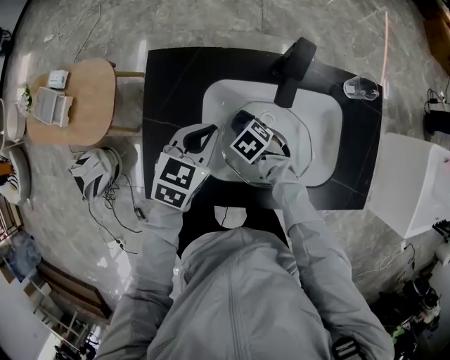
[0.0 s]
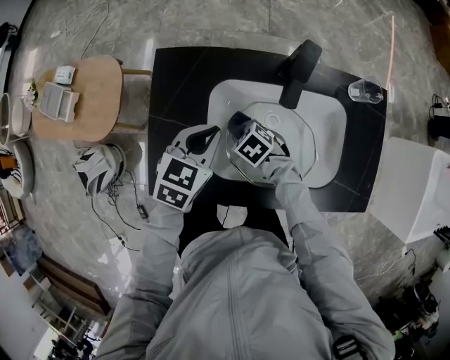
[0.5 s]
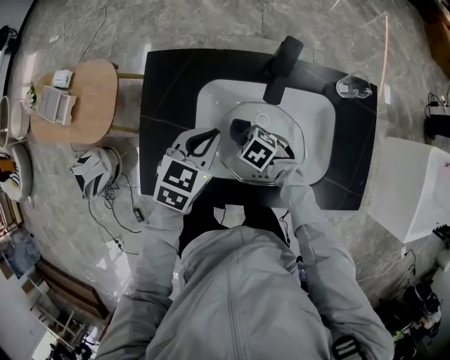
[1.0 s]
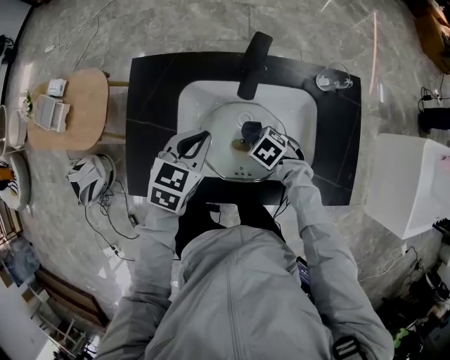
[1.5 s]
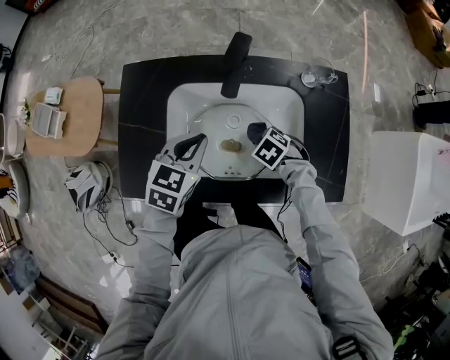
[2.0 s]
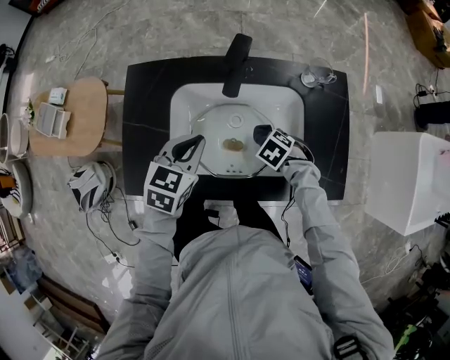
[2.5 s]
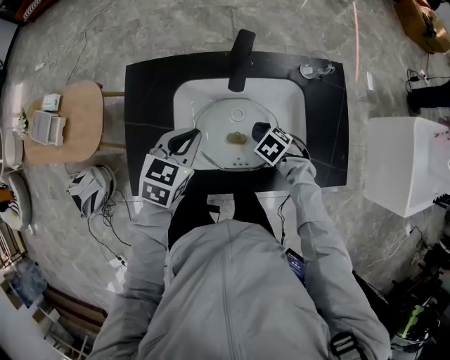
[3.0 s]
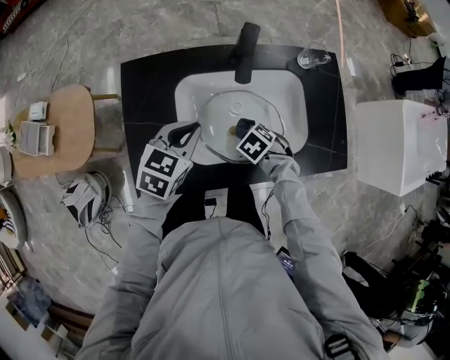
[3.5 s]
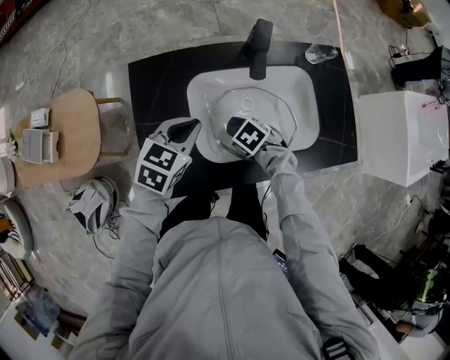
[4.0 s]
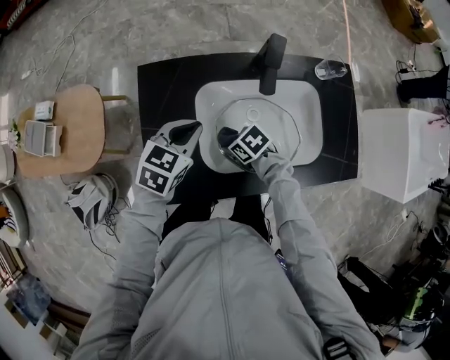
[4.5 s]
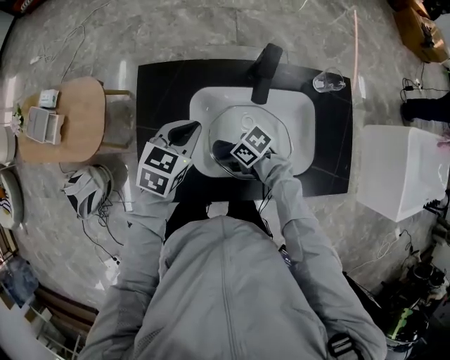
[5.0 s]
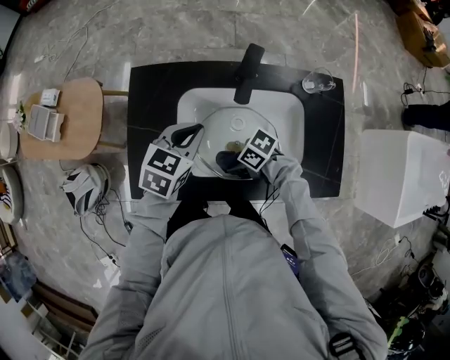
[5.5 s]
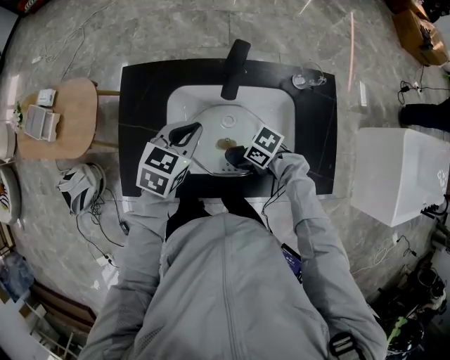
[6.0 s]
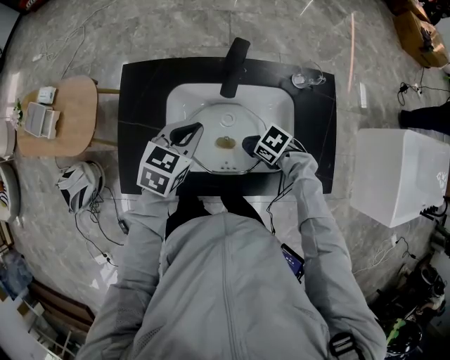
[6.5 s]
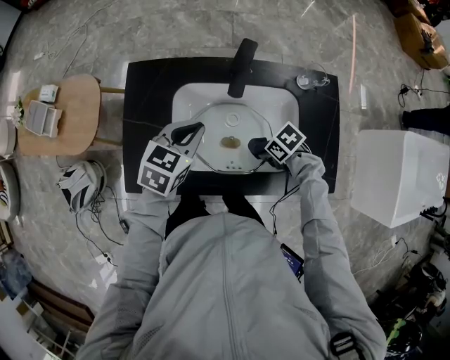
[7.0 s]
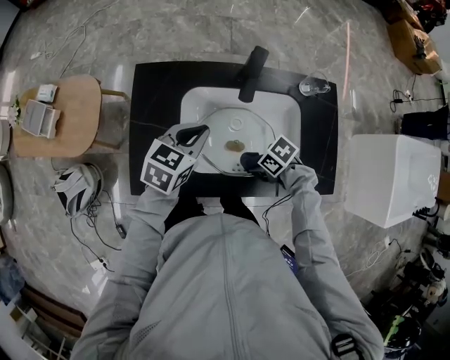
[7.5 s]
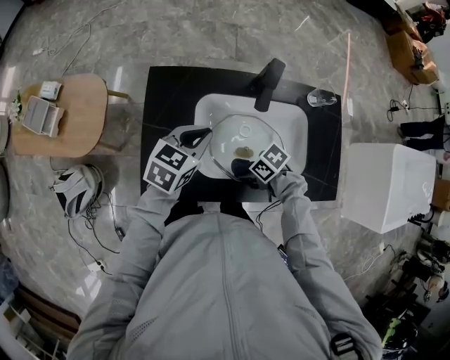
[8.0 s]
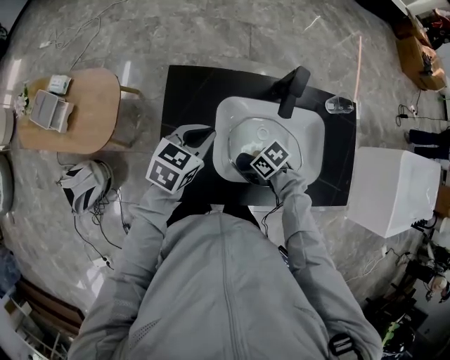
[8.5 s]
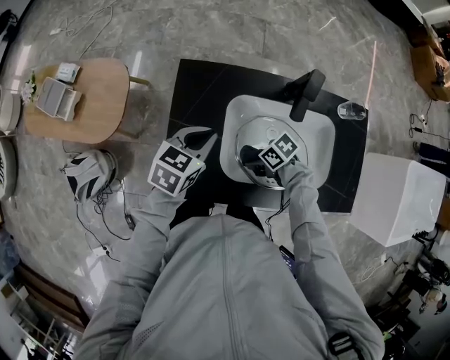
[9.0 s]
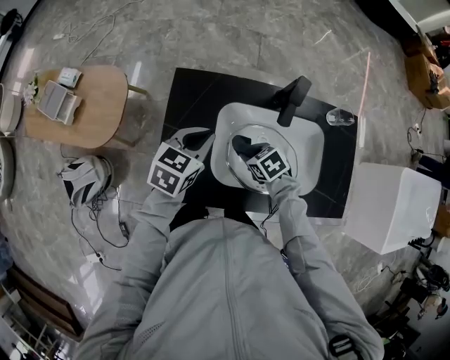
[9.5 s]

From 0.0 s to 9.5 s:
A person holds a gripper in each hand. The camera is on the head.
From 0.0 s to 2.0 s: The left gripper moves about 10 cm. The right gripper changes place by about 20 cm.
From 2.0 s to 4.0 s: The left gripper moves approximately 10 cm. The right gripper shifts by about 15 cm.
From 4.0 s to 5.5 s: The right gripper changes place by some 5 cm, and tilts its fingers roughly 30 degrees upward; the left gripper ends up some 5 cm from where it was.
From 7.5 s to 9.5 s: The right gripper shifts by approximately 20 cm, and swivels approximately 30 degrees. Meanwhile the left gripper shifts by about 10 cm.

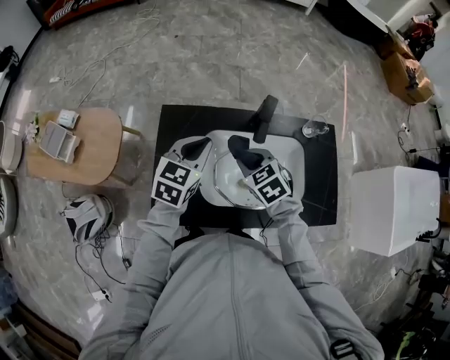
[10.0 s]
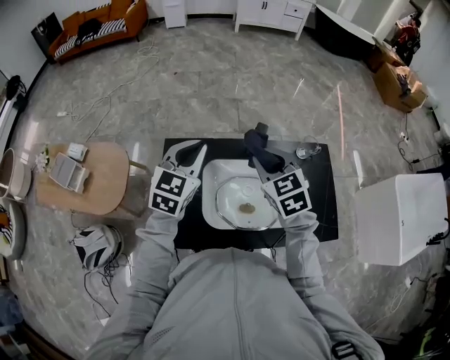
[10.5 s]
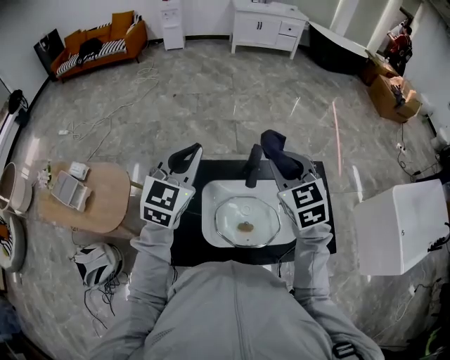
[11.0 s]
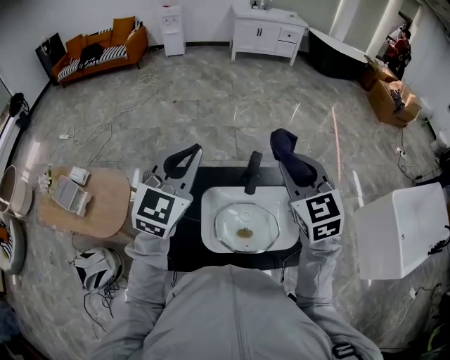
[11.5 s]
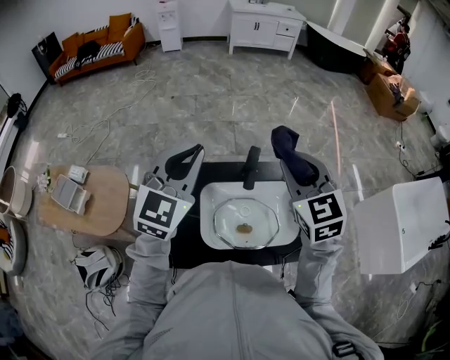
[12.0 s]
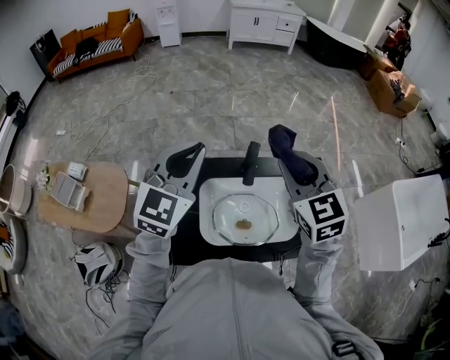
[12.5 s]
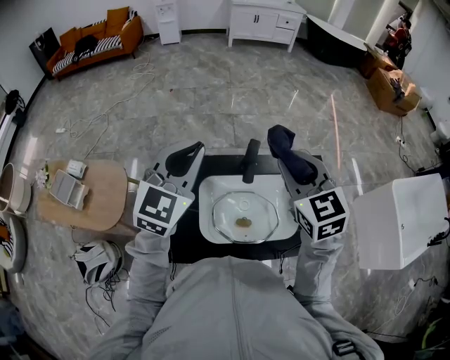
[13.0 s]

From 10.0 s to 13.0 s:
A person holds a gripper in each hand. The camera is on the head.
From 10.0 s to 11.5 s: The two grippers go roughly 25 cm upward. The left gripper rotates approximately 30 degrees. The right gripper points its fingers some 30 degrees further upward.
From 11.5 s to 13.0 s: There are only small adjustments of the grippers.

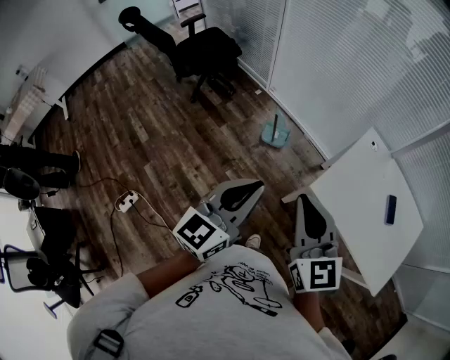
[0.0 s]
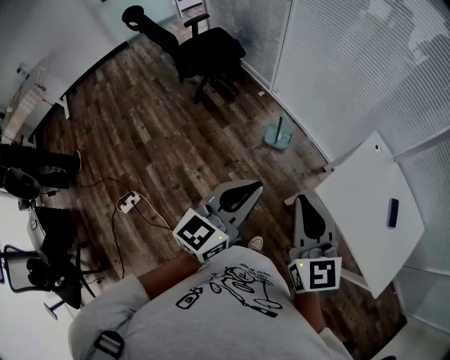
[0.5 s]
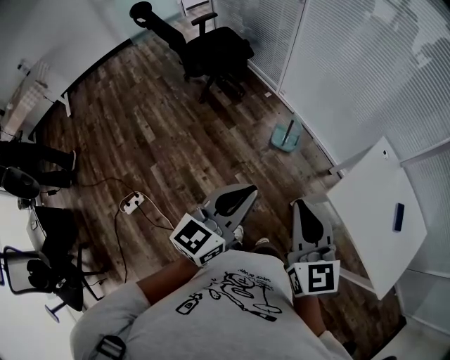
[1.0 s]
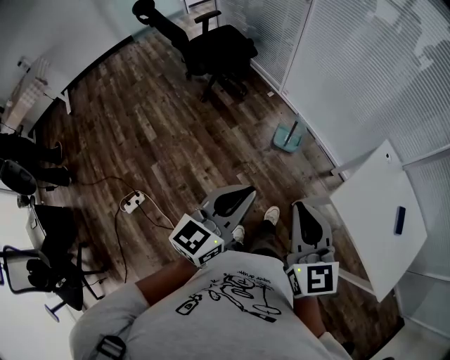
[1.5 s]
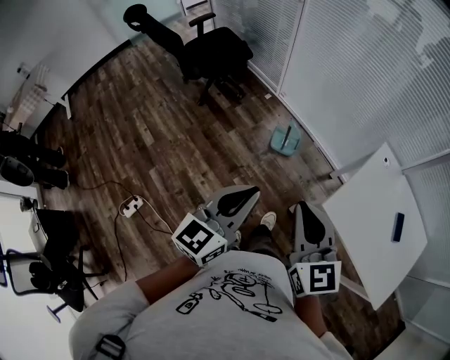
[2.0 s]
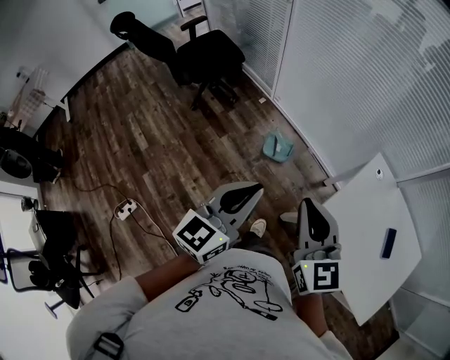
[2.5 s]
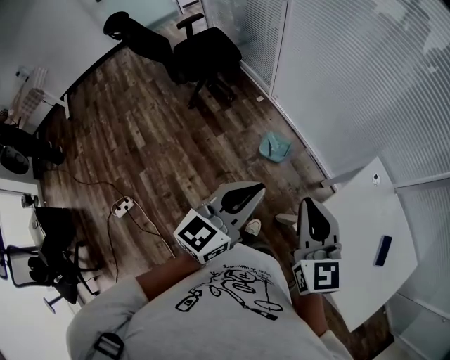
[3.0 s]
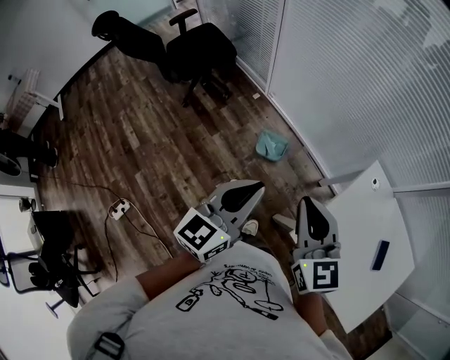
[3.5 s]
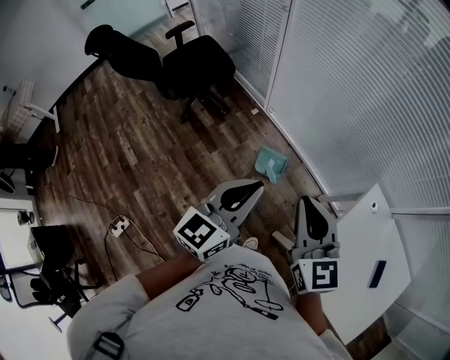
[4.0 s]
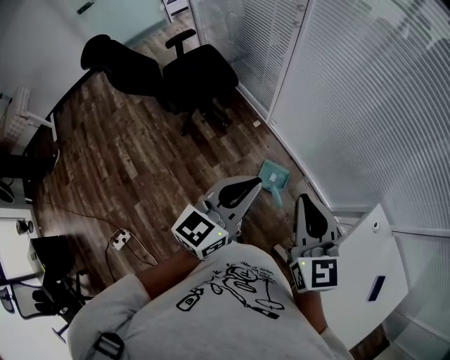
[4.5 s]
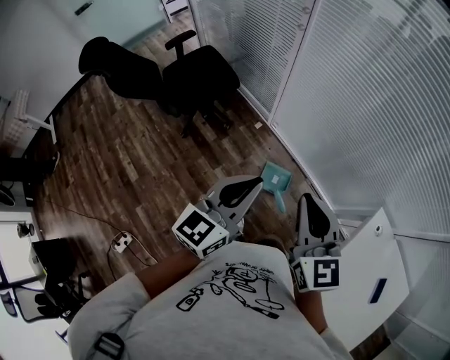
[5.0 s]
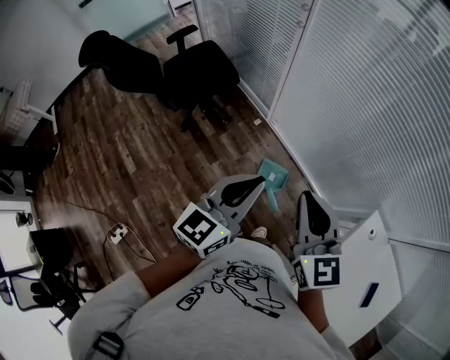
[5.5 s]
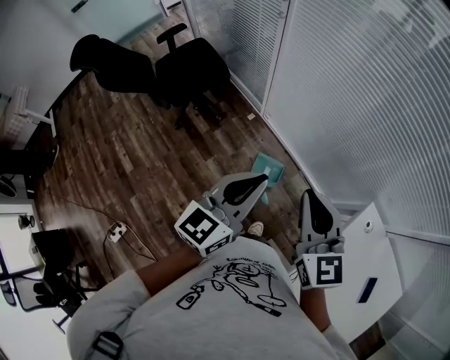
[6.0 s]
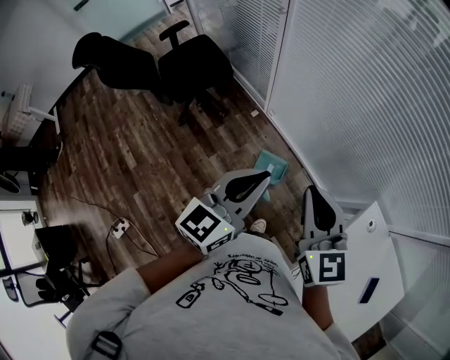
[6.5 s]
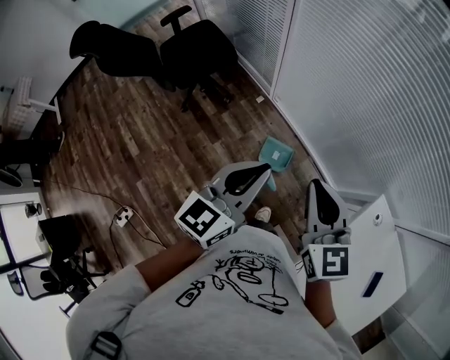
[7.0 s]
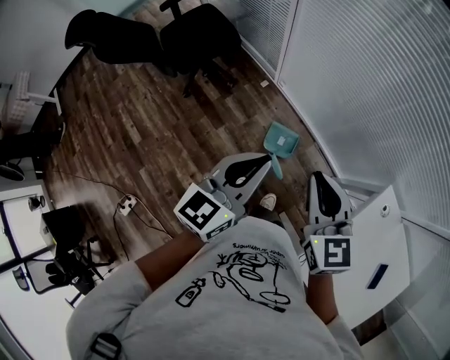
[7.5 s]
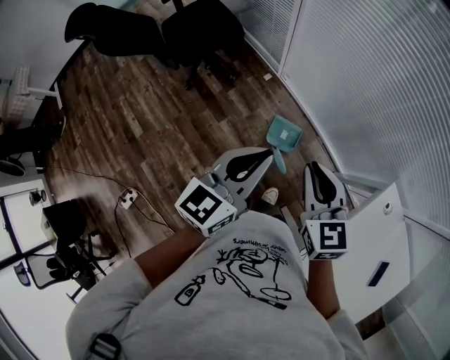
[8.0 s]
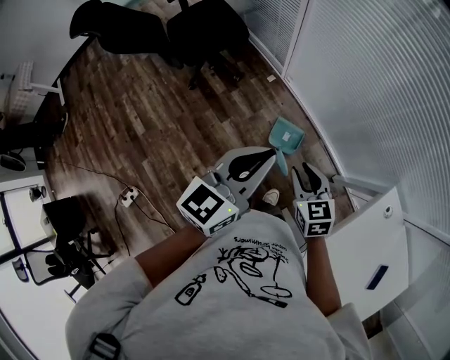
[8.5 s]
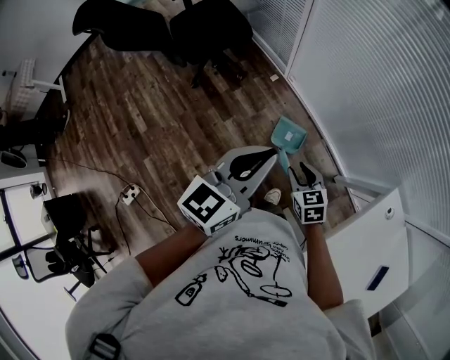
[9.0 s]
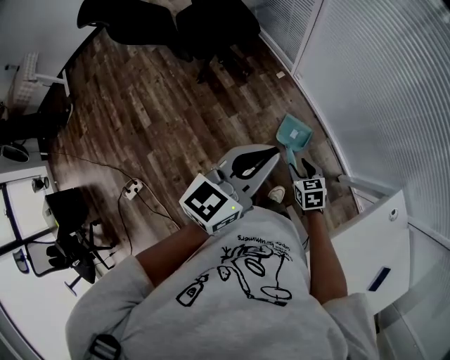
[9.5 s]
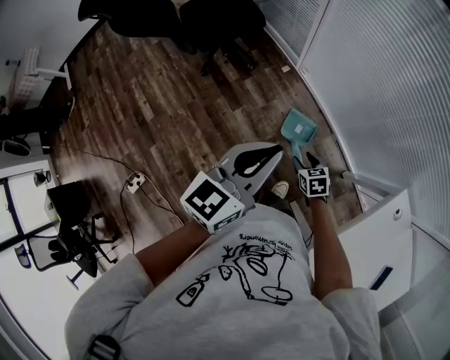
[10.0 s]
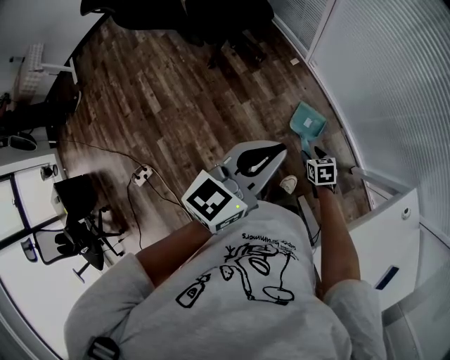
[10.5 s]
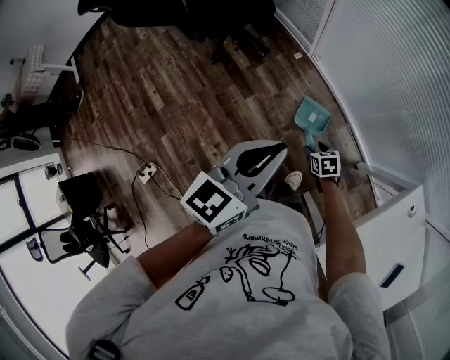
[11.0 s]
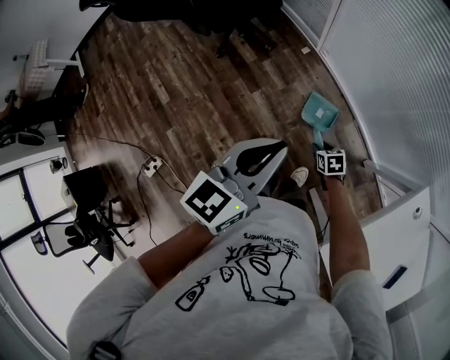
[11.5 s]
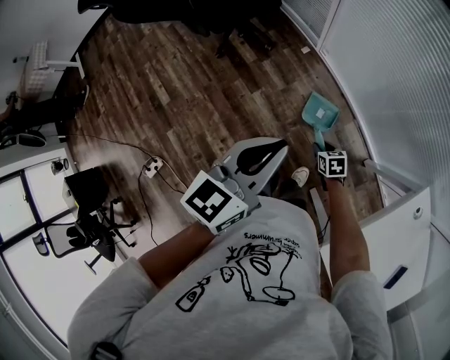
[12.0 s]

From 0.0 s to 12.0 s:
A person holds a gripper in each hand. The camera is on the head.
From 0.0 s to 2.0 s: The two grippers go roughly 10 cm to the left and forward.
From 2.0 s to 4.0 s: Both grippers travel together forward, some 30 cm.
From 4.0 s to 6.0 s: Both grippers move forward, approximately 15 cm.
From 6.0 s to 8.0 s: The right gripper is displaced downward by roughly 10 cm; the left gripper moves downward, some 5 cm.
From 8.0 s to 10.0 s: The right gripper goes about 30 cm downward, changes its angle by approximately 30 degrees, and opens.
From 10.0 s to 12.0 s: The right gripper heads downward, covering some 10 cm.

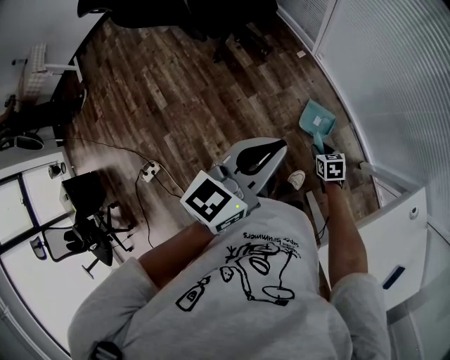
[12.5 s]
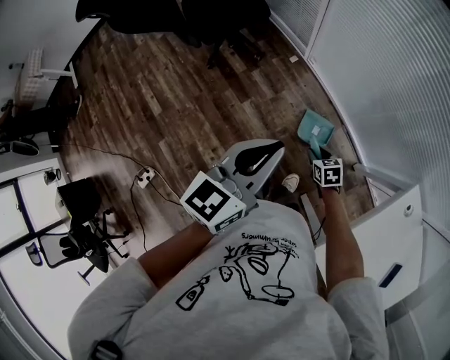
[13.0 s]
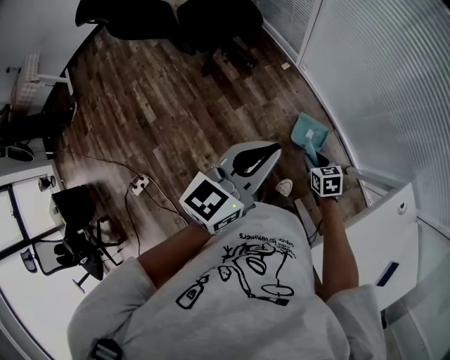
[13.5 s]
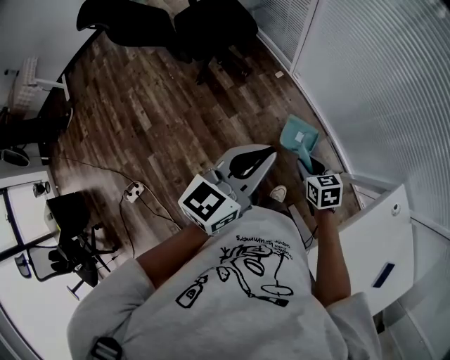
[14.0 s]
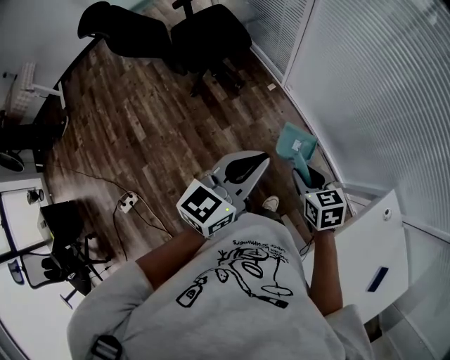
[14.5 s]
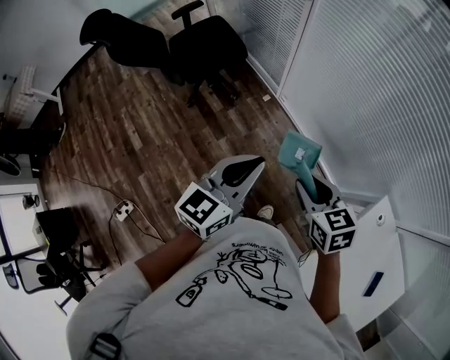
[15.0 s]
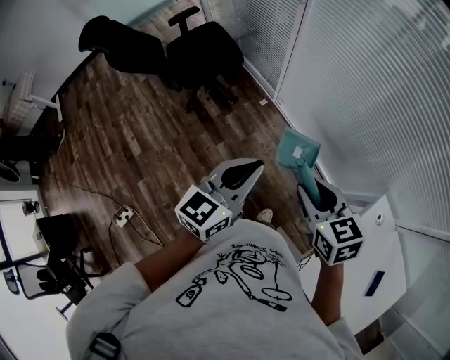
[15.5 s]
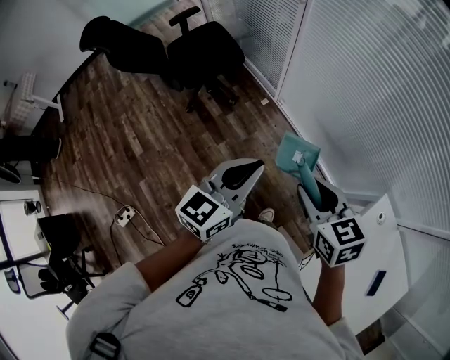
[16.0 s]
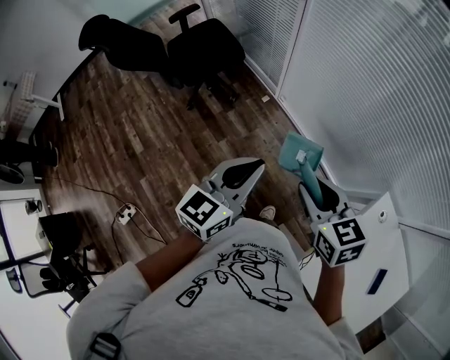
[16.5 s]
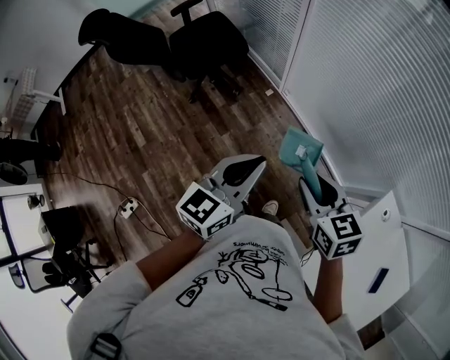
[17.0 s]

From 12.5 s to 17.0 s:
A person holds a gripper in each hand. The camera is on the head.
From 12.5 s to 14.5 s: The right gripper heads upward, covering about 30 cm.
From 14.5 s to 17.0 s: The right gripper shifts about 10 cm upward.
